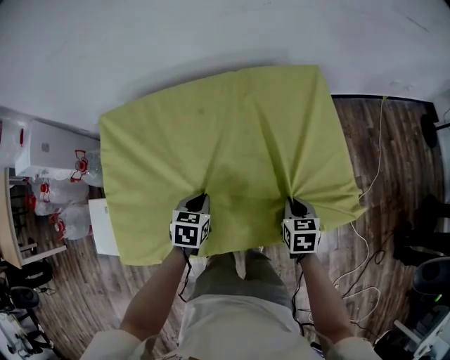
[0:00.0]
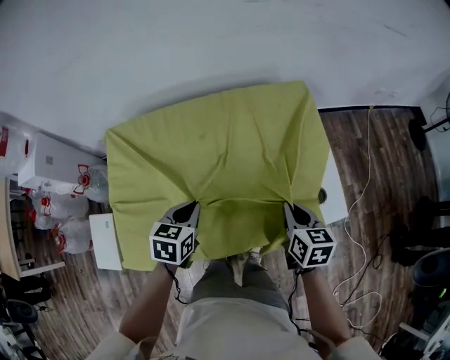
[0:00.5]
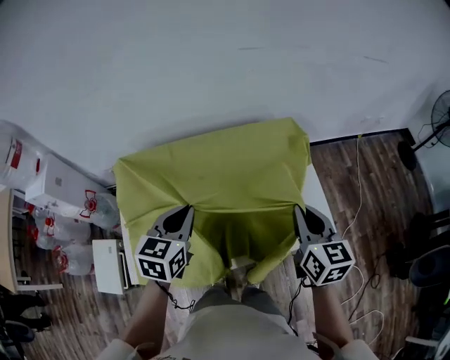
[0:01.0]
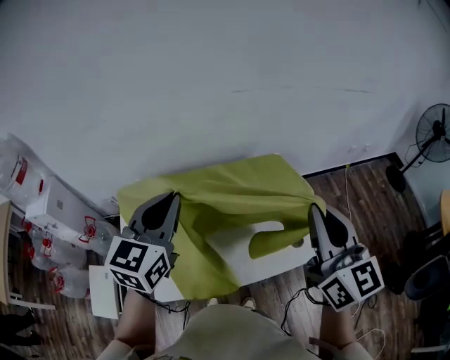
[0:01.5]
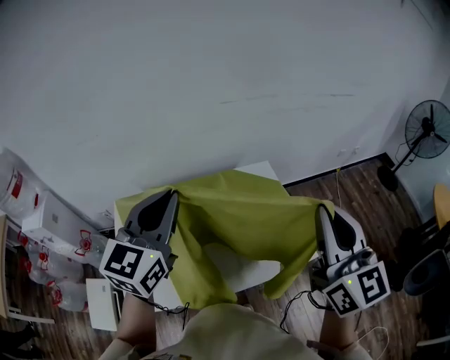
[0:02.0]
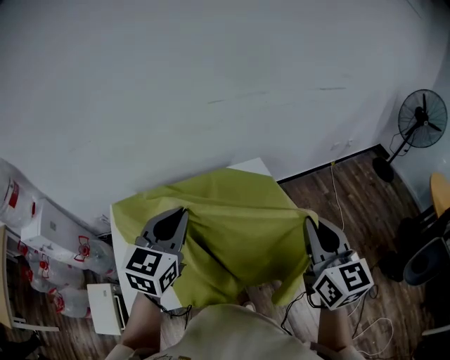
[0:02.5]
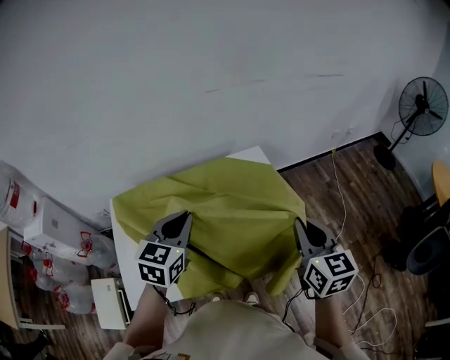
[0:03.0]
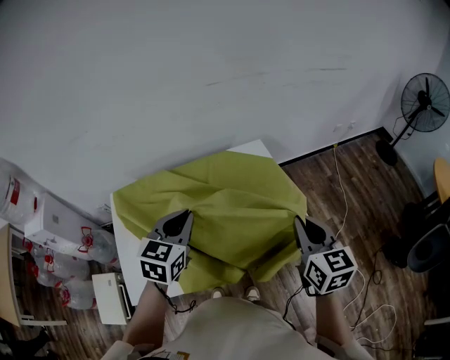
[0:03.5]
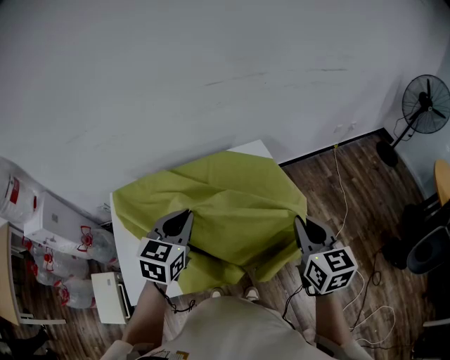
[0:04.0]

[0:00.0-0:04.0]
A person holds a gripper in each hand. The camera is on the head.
0:00.0 to 0:02.0: Both grippers travel together upward, roughly 50 cm. The right gripper tilts its fingers approximately 60 degrees upward, while the left gripper points its fingers approximately 50 degrees further upward.
0:02.0 to 0:04.0: The grippers both shift downward by approximately 20 cm. The left gripper rotates some 20 degrees. The right gripper rotates roughly 30 degrees.

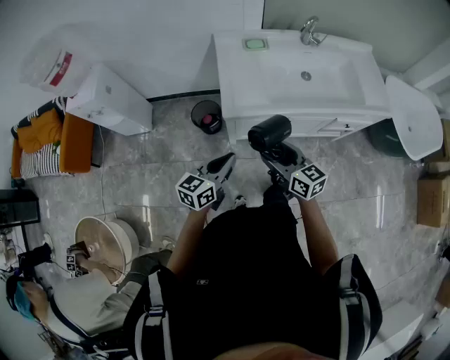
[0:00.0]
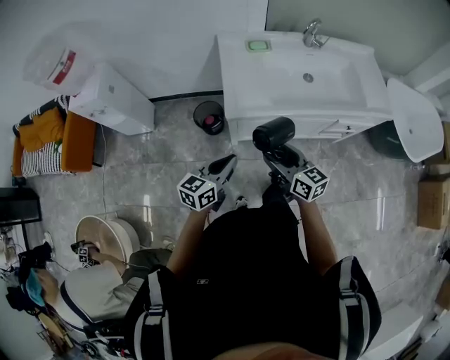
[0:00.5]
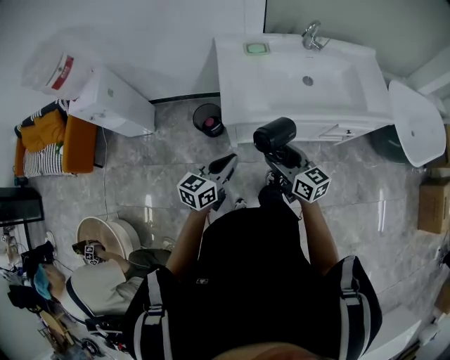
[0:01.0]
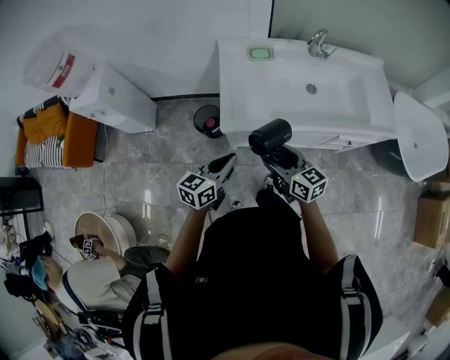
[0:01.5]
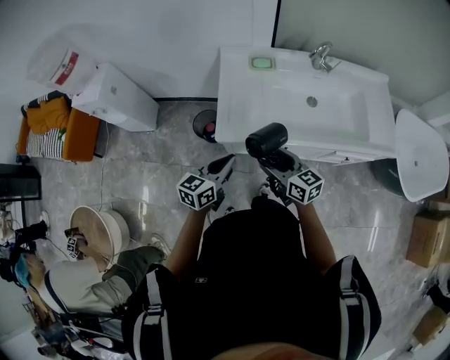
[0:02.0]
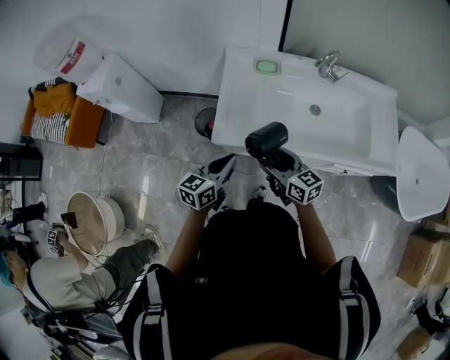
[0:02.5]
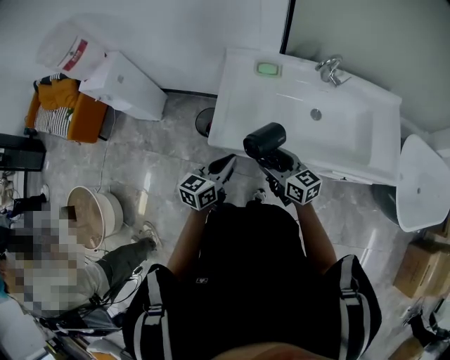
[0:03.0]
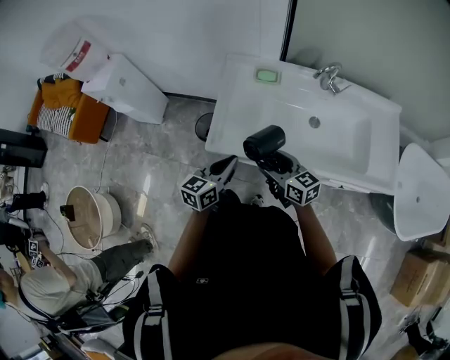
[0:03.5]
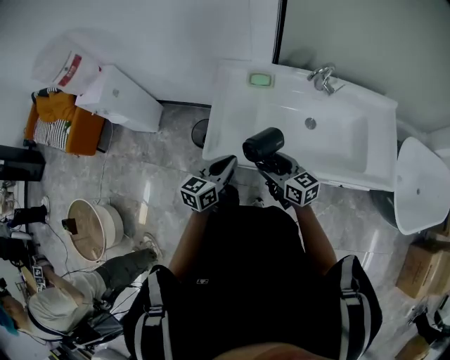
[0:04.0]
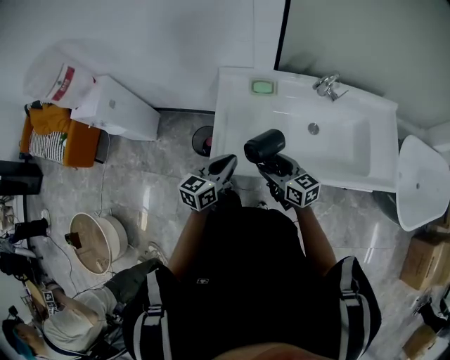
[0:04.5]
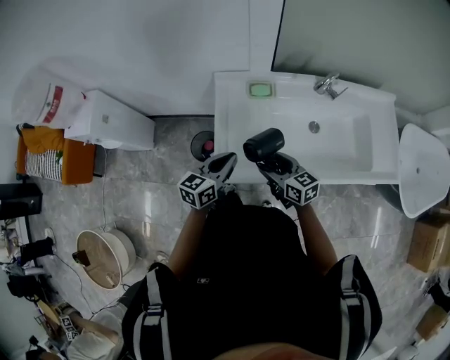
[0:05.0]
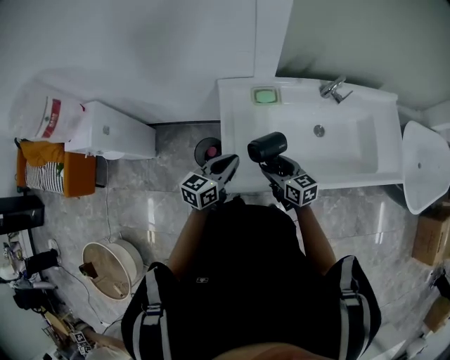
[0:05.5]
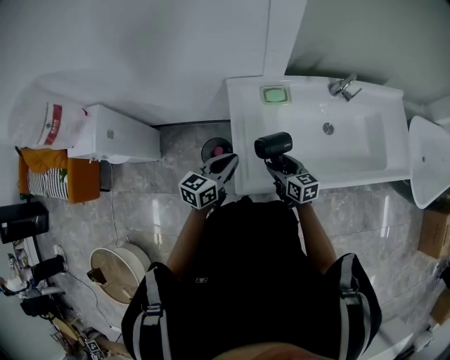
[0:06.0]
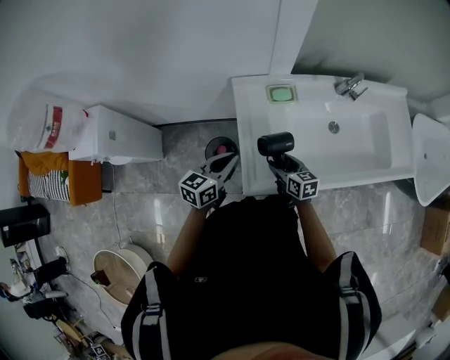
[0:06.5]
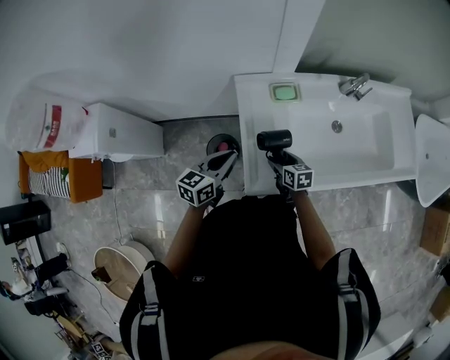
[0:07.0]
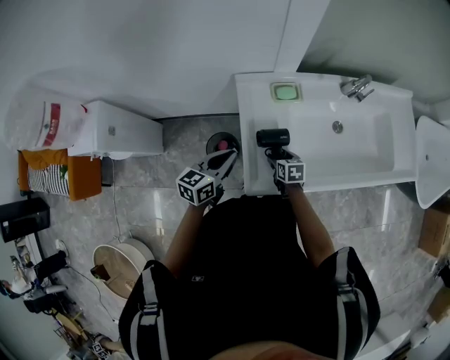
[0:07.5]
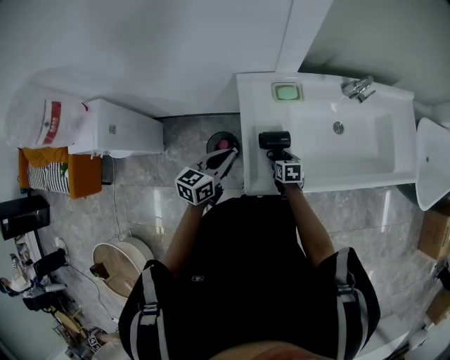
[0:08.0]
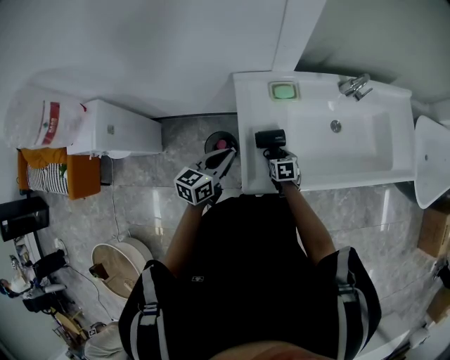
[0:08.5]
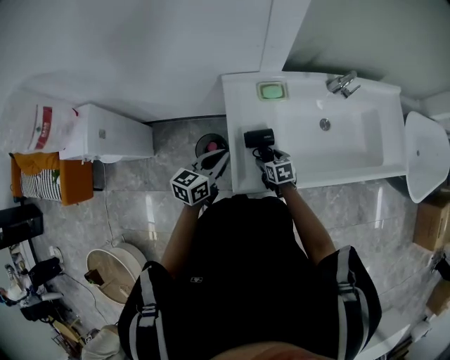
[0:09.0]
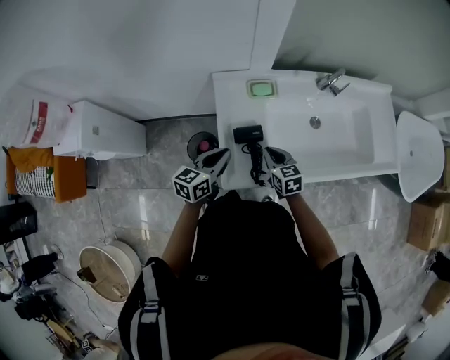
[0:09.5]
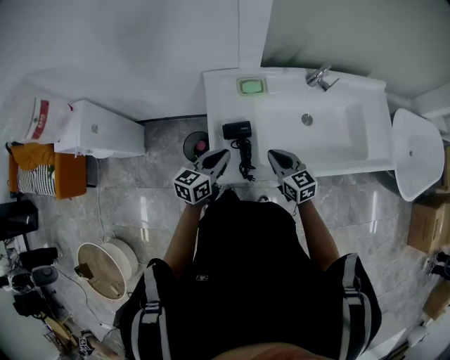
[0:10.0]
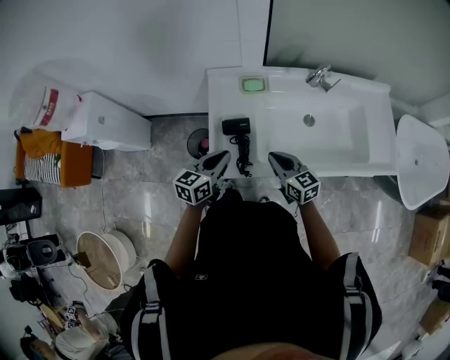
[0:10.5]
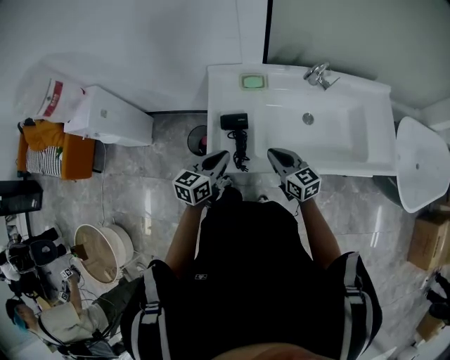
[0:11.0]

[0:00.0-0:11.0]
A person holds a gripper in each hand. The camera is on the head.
0:00.0 to 0:02.0: Both grippers move forward and to the right, about 10 cm.
0:02.0 to 0:03.5: The left gripper heads to the right, covering about 5 cm. The right gripper heads forward and to the right, covering approximately 10 cm.
0:03.5 to 0:05.5: The right gripper shifts some 15 cm forward, downward and to the left, and turns by roughly 20 degrees; the left gripper is displaced forward and to the left by roughly 20 cm.
0:05.5 to 0:07.5: The right gripper shifts approximately 15 cm downward, and turns by roughly 30 degrees; the left gripper heads to the left, covering roughly 10 cm.
0:07.5 to 0:09.0: The grippers make only small movements.
0:09.0 to 0:11.0: The left gripper moves to the right and backward, about 15 cm; the right gripper shifts some 20 cm upward and to the right, points its fingers some 40 degrees further upward, and closes.

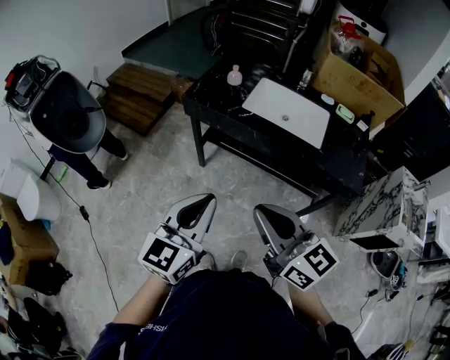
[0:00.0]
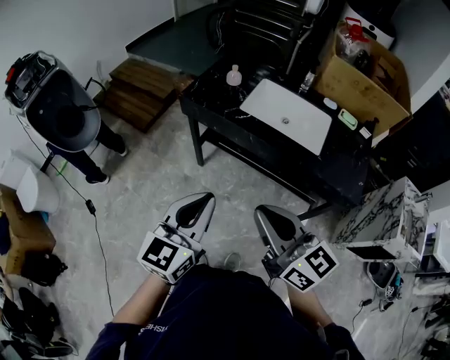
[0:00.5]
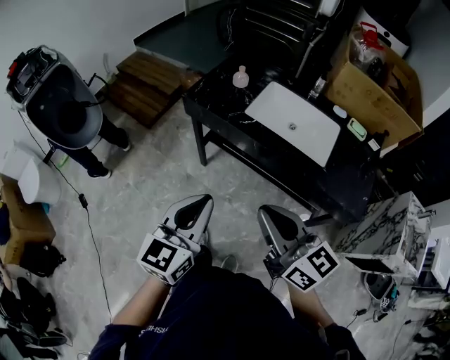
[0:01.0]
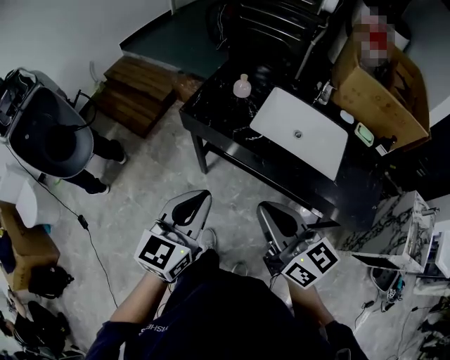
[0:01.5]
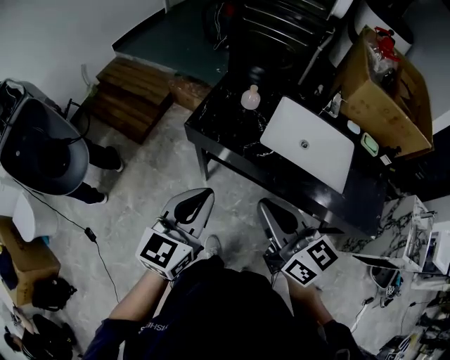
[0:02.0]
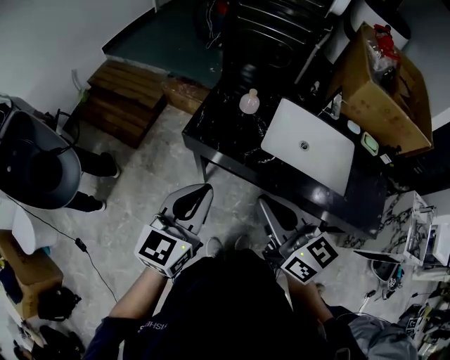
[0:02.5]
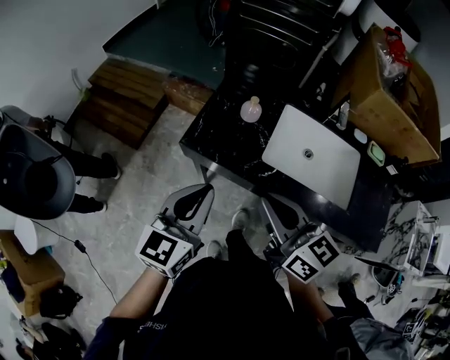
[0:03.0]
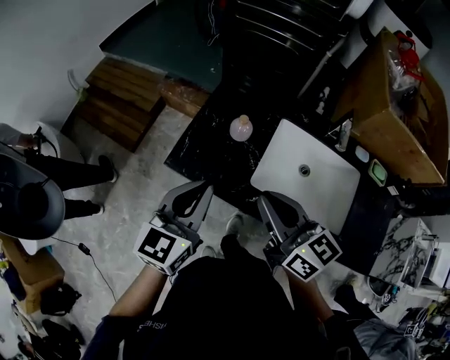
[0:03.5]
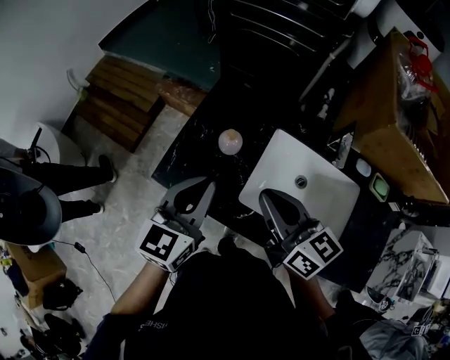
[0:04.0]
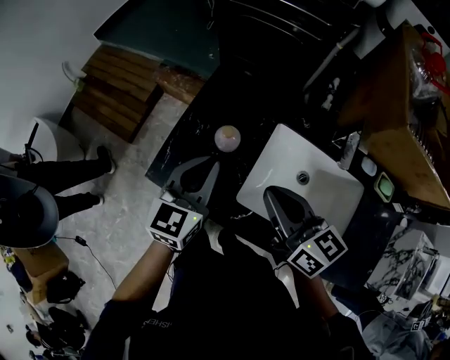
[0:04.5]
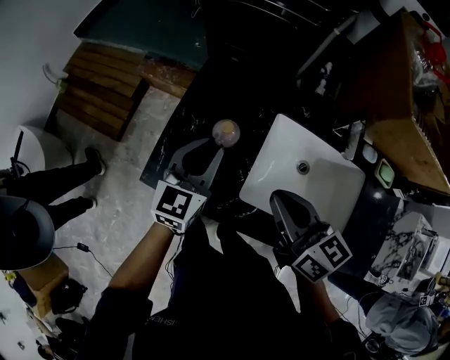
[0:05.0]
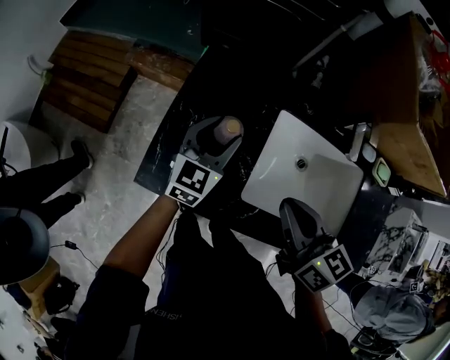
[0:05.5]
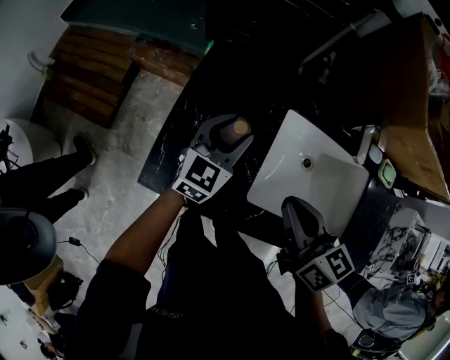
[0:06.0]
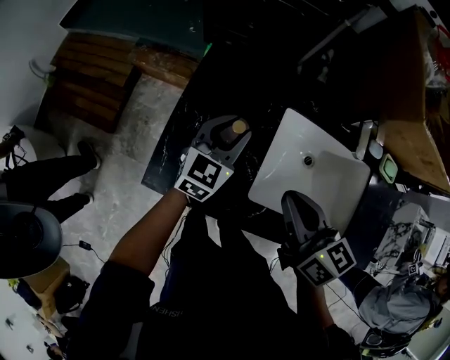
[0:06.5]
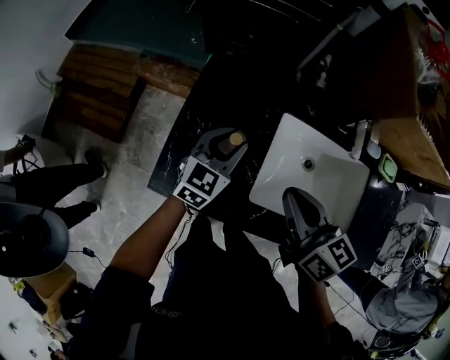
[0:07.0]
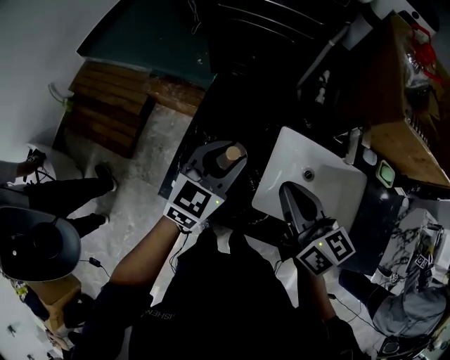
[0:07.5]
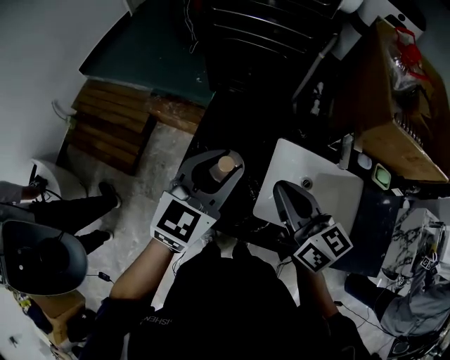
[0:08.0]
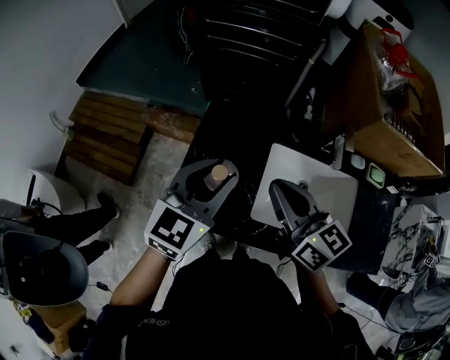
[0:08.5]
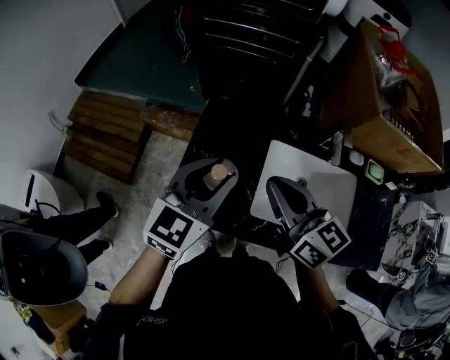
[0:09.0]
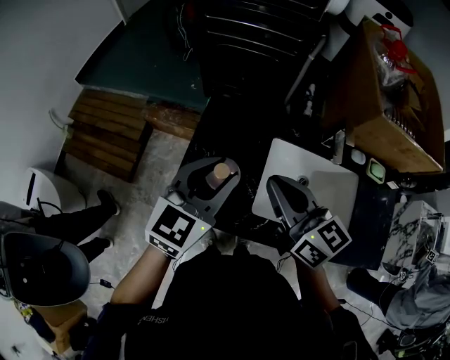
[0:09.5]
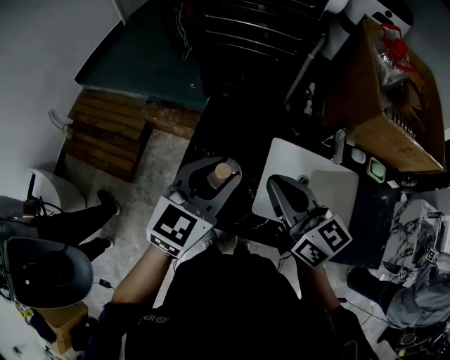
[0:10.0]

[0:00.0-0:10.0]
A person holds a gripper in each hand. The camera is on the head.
0:00.0 to 0:02.0: The grippers both shift forward by approximately 25 cm.
0:02.0 to 0:04.0: The two grippers go roughly 30 cm forward.
0:04.0 to 0:06.0: The left gripper goes approximately 20 cm forward and downward, and opens its fingers. The right gripper is displaced downward by about 5 cm, and changes its angle by about 20 degrees.
0:06.0 to 0:08.0: The left gripper heads upward, covering about 20 cm; the right gripper shifts approximately 10 cm upward.
0:08.0 to 0:10.0: The grippers make only small movements.

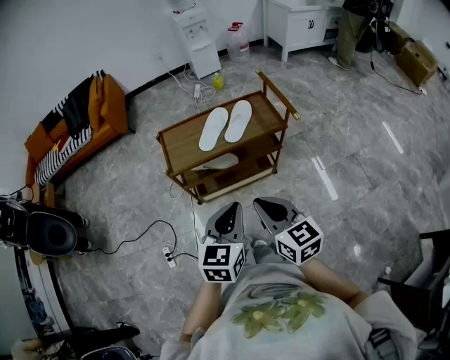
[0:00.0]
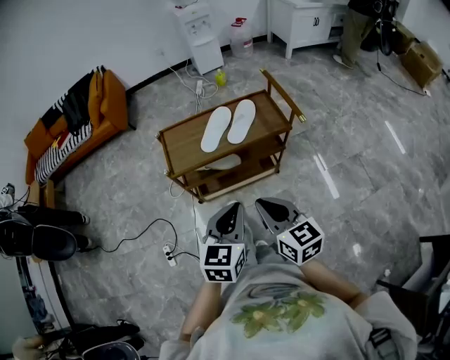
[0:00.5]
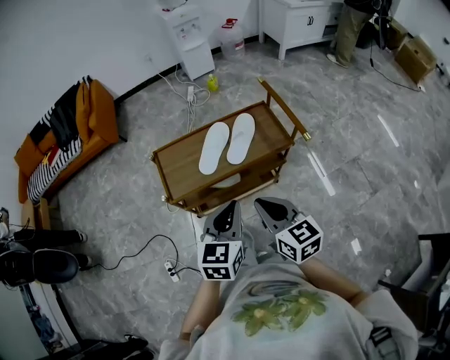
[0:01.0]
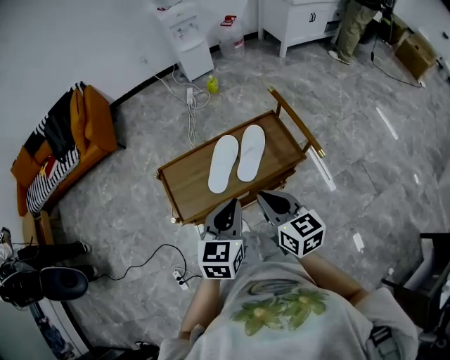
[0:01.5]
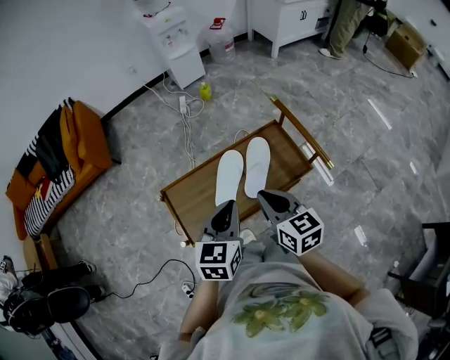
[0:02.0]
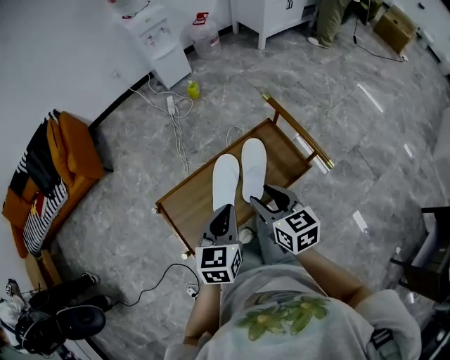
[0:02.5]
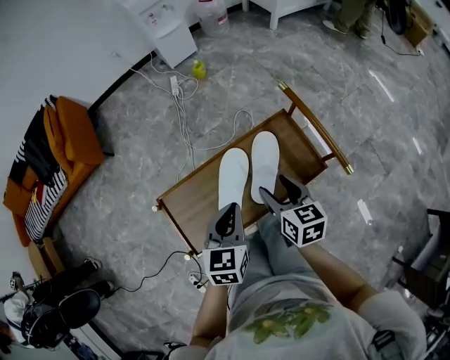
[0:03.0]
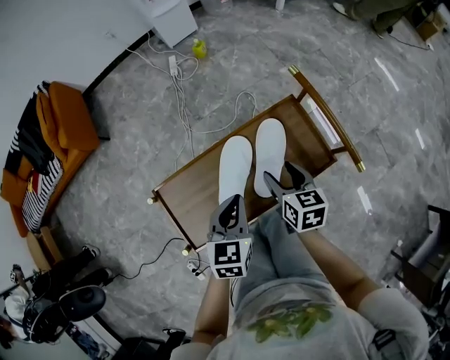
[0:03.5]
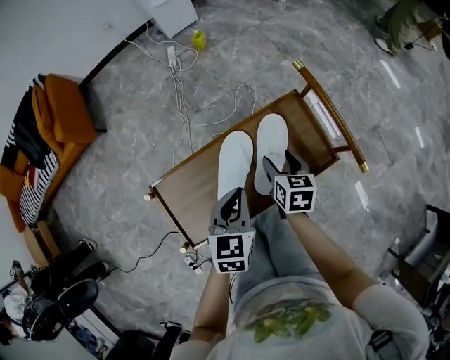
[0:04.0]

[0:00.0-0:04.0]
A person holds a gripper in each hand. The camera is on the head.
0:00.0 to 0:02.0: Both grippers move forward, about 35 cm.
0:02.0 to 0:04.0: The left gripper moves downward and forward, some 15 cm; the right gripper heads downward and forward, covering some 25 cm, rotates some 30 degrees, and opens.
